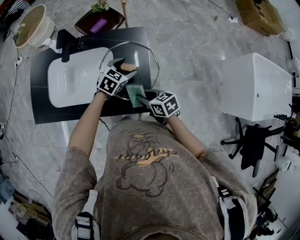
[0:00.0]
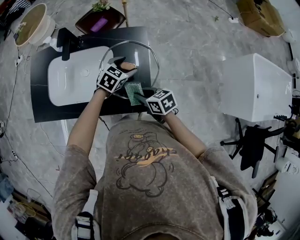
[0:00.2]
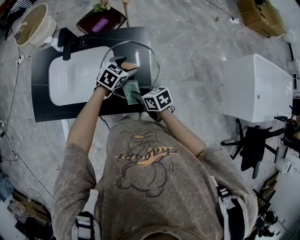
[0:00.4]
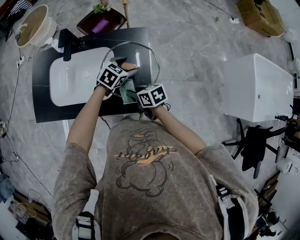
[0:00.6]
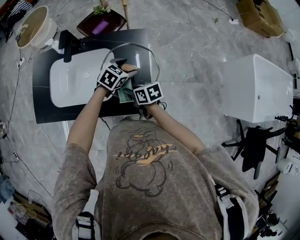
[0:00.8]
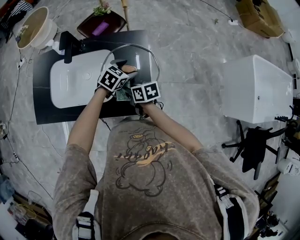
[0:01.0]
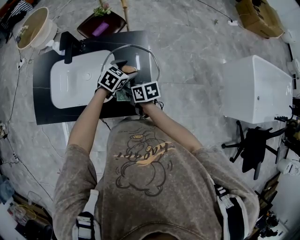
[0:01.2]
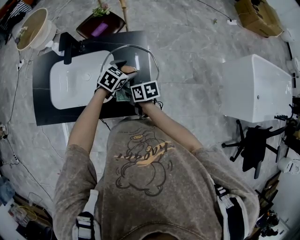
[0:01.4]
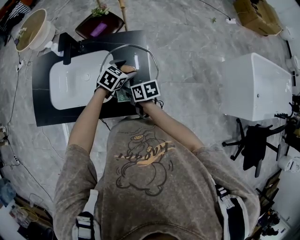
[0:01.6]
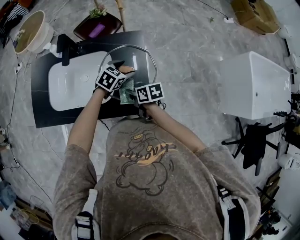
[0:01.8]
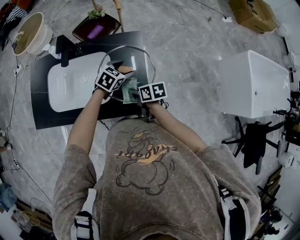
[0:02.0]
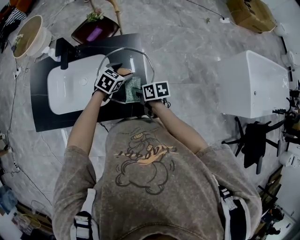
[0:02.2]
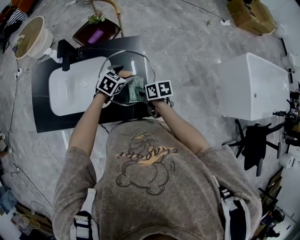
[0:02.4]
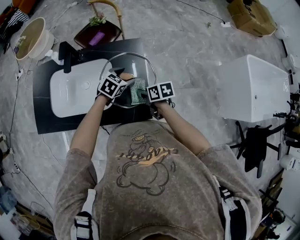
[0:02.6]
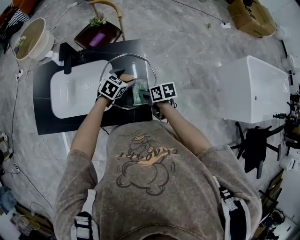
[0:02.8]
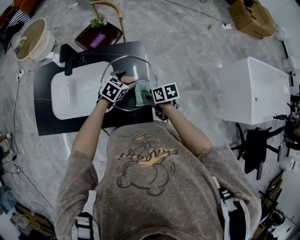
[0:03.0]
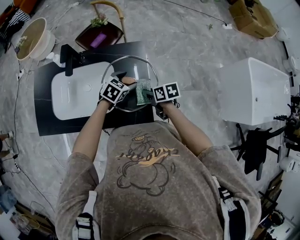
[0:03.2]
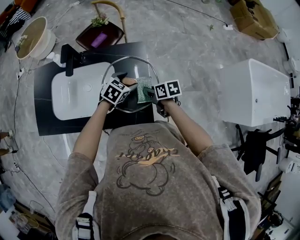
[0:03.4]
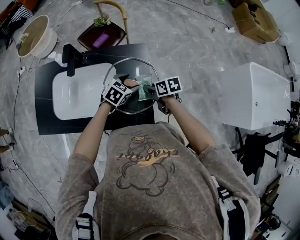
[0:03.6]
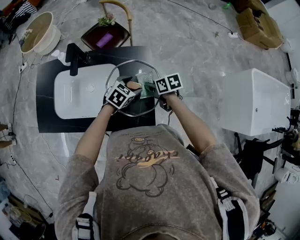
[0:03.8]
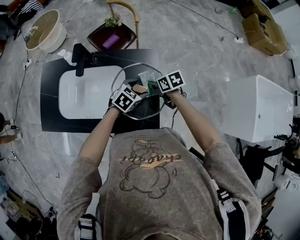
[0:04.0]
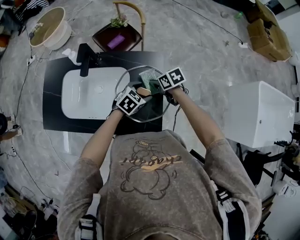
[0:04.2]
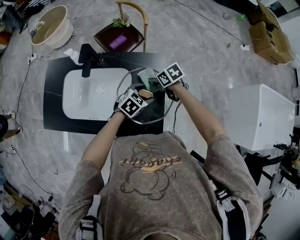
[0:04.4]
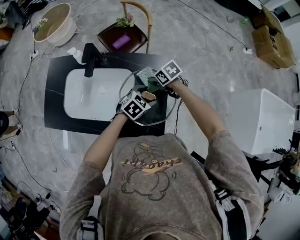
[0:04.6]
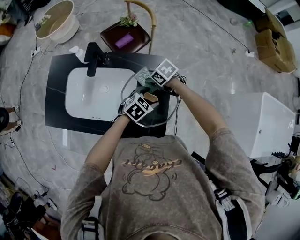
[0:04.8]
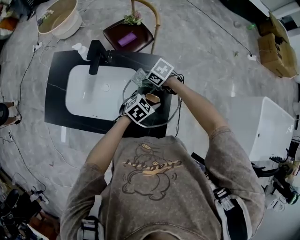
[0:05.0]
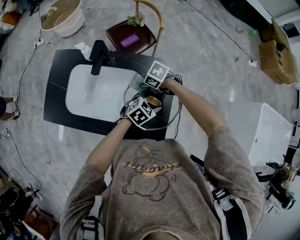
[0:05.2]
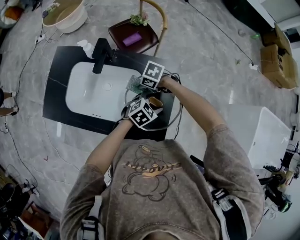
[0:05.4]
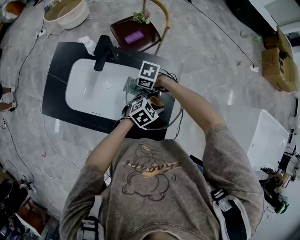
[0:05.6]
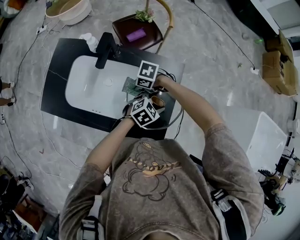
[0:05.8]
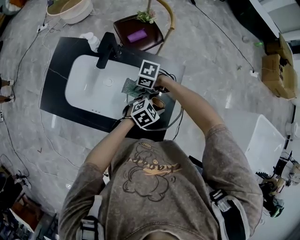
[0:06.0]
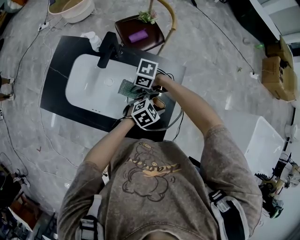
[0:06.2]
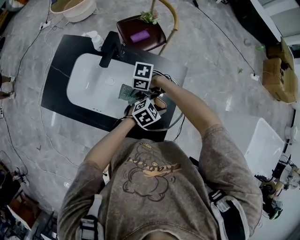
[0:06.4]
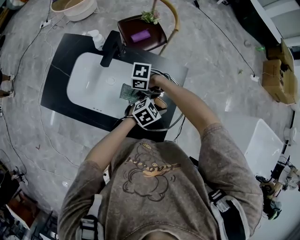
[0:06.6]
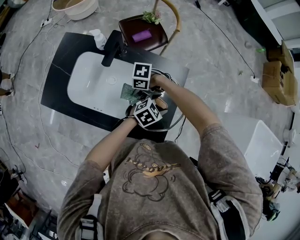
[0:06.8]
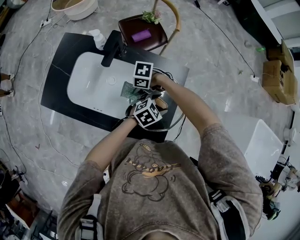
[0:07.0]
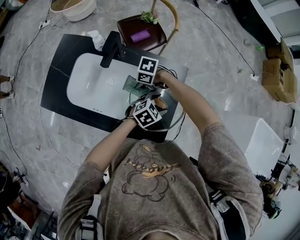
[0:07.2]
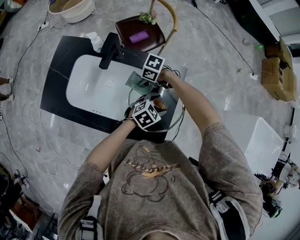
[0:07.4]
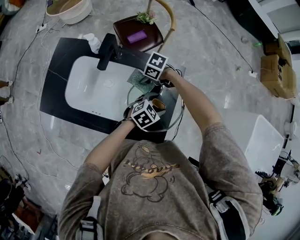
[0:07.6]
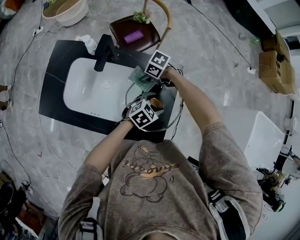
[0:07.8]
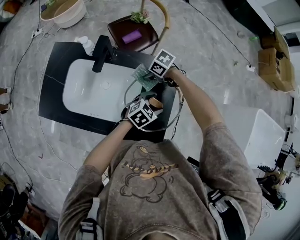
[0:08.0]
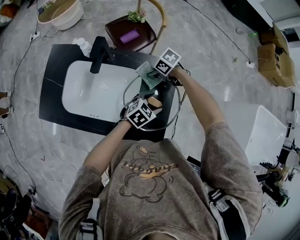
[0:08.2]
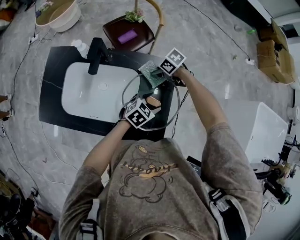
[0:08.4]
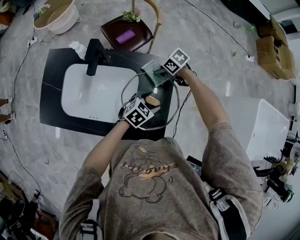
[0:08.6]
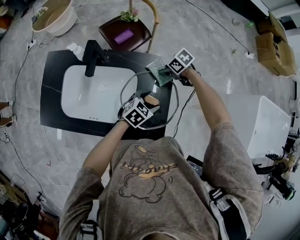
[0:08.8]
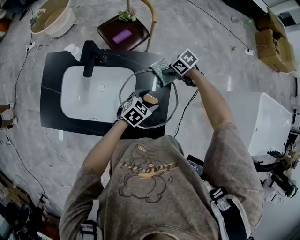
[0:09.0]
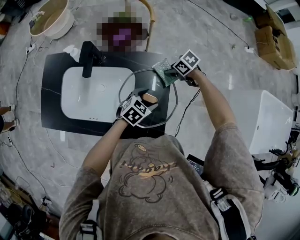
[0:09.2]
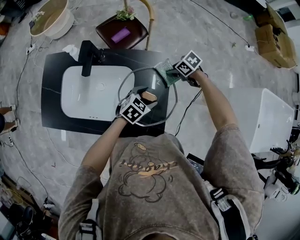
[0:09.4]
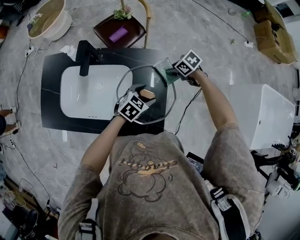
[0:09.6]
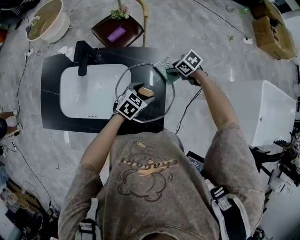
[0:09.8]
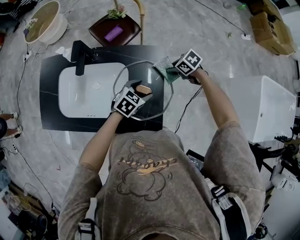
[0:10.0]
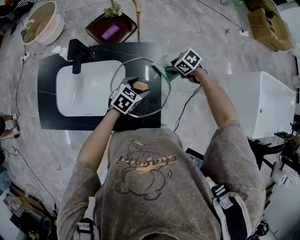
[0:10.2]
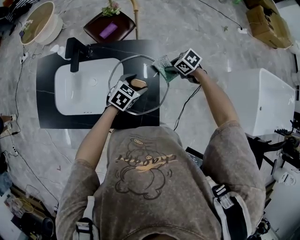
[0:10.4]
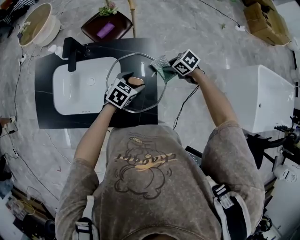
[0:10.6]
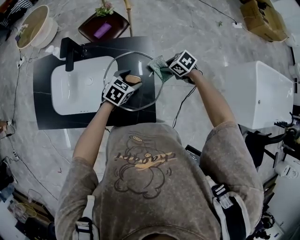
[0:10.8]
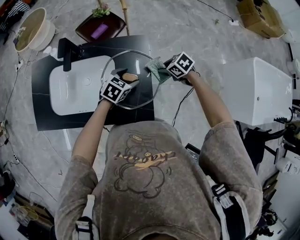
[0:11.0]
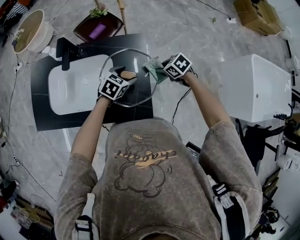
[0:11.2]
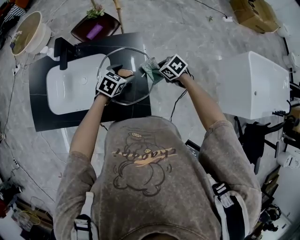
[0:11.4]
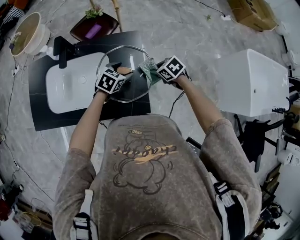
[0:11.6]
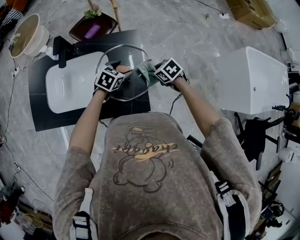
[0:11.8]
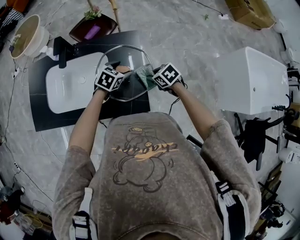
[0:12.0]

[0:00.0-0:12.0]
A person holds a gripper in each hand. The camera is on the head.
0:00.0 to 0:01.6: The right gripper is displaced to the left and forward by about 10 cm.
0:01.6 to 0:03.0: The right gripper shifts some 10 cm to the right.
0:03.0 to 0:04.4: The right gripper moves roughly 15 cm, and turns by about 30 degrees.
0:04.4 to 0:06.0: The right gripper ends up some 15 cm from where it was, and changes its angle by roughly 50 degrees.
0:06.0 to 0:07.6: The right gripper changes place by some 5 cm.
0:07.6 to 0:09.0: The right gripper shifts by roughly 20 cm, and swivels roughly 30 degrees.
0:09.0 to 0:10.4: The right gripper moves roughly 10 cm.
0:10.4 to 0:12.0: The right gripper moves about 10 cm.

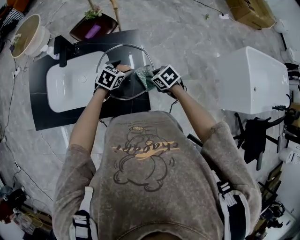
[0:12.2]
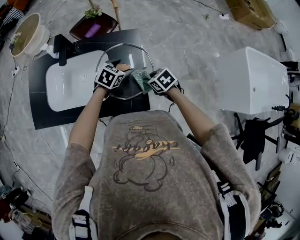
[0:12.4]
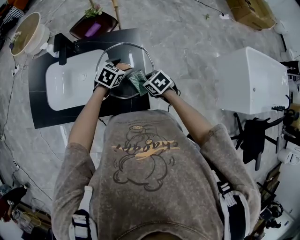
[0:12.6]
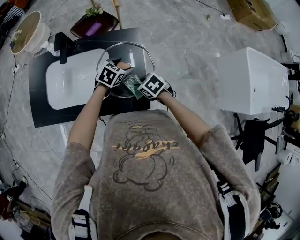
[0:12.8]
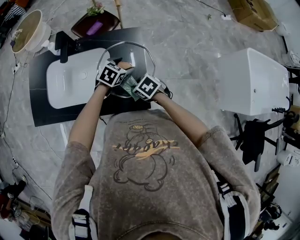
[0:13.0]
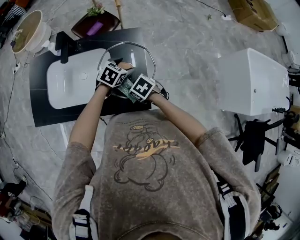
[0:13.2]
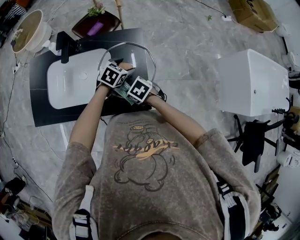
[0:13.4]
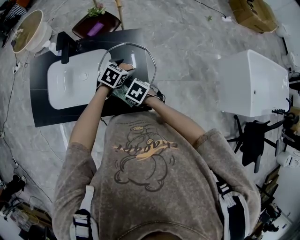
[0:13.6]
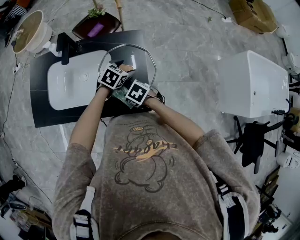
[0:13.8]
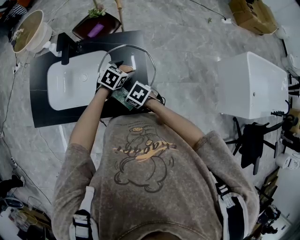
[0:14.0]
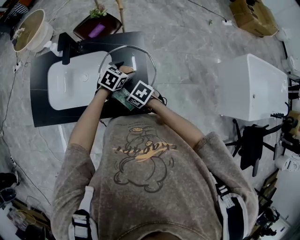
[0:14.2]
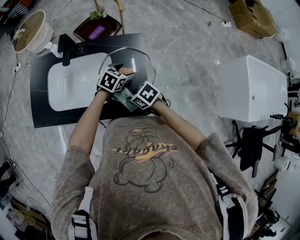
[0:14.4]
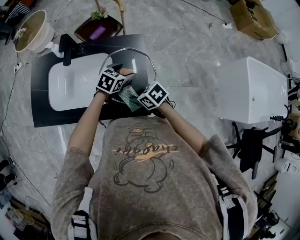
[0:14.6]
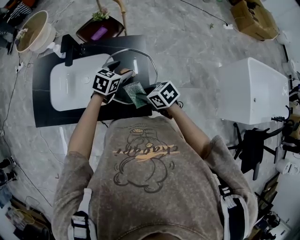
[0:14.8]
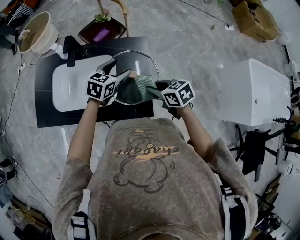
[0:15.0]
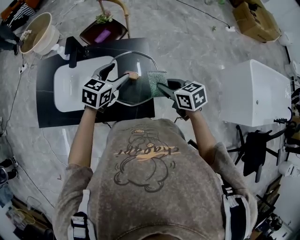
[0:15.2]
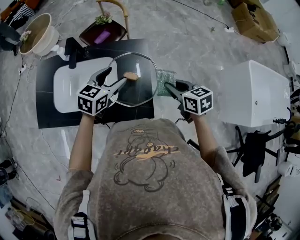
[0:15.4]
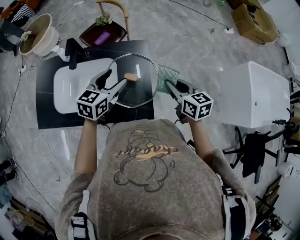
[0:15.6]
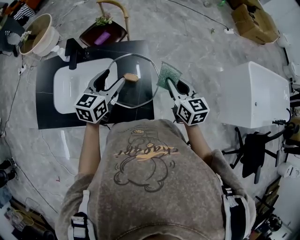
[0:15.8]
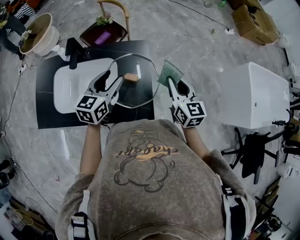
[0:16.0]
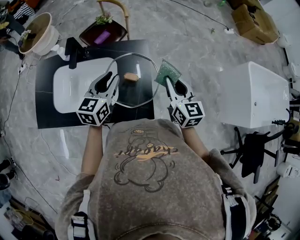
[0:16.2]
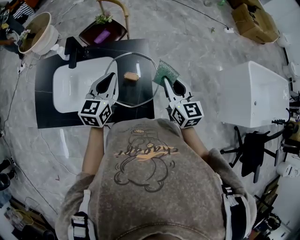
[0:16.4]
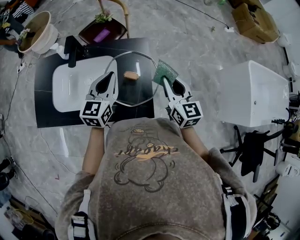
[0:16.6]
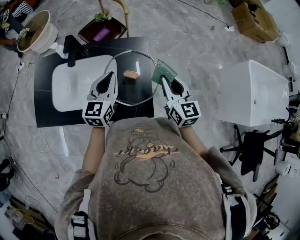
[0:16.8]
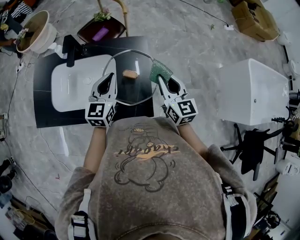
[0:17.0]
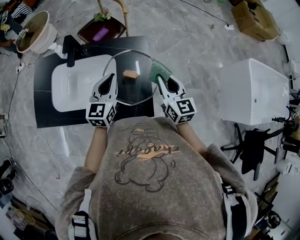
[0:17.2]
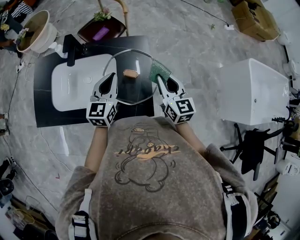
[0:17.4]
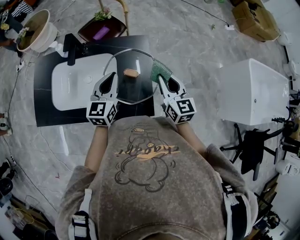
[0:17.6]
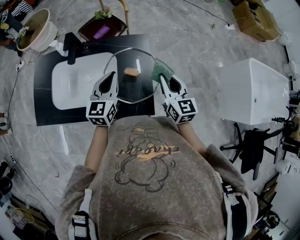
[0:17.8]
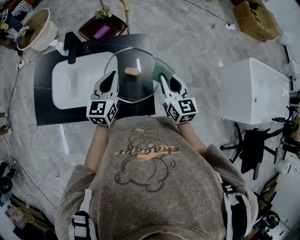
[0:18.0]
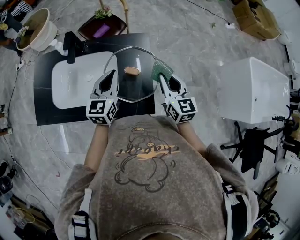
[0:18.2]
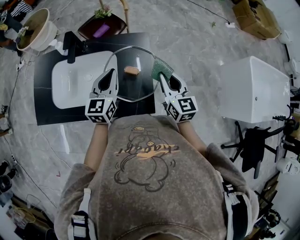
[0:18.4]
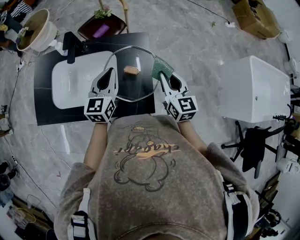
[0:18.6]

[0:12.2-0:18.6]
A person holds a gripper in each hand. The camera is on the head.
0:12.2 to 0:13.8: The right gripper ends up about 15 cm from where it was.
0:13.8 to 0:15.4: The left gripper travels upward by roughly 15 cm, and swivels some 20 degrees, while the right gripper shifts by about 25 cm, and changes its angle by approximately 40 degrees.
0:15.4 to 0:17.0: The right gripper rotates some 30 degrees. Meanwhile the left gripper turns by some 30 degrees, and closes its fingers.
0:17.0 to 0:18.6: There are only small adjustments of the grippers.

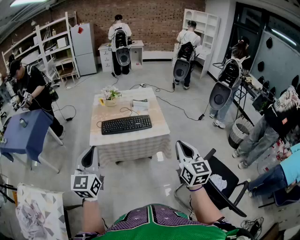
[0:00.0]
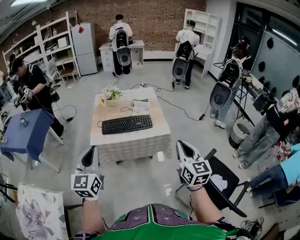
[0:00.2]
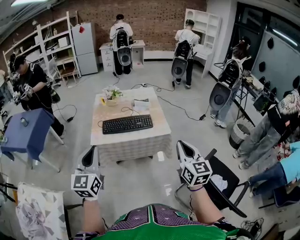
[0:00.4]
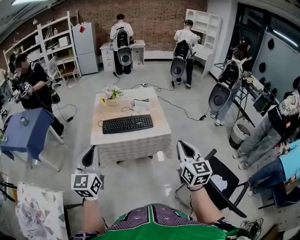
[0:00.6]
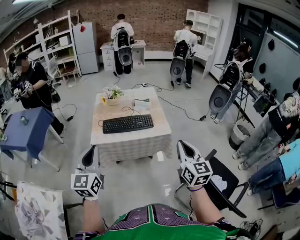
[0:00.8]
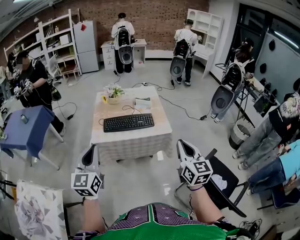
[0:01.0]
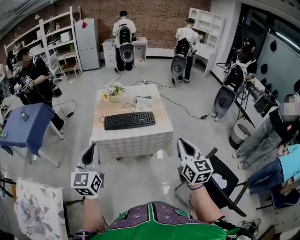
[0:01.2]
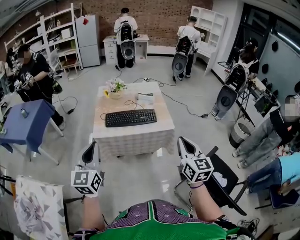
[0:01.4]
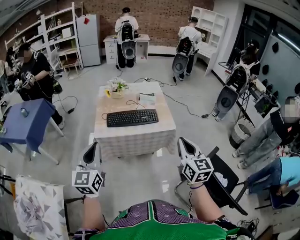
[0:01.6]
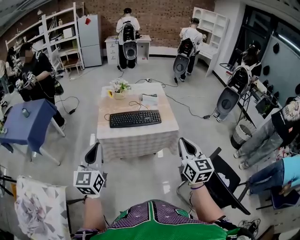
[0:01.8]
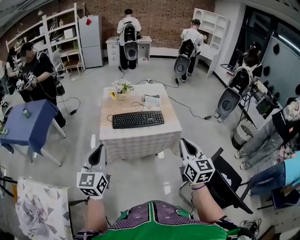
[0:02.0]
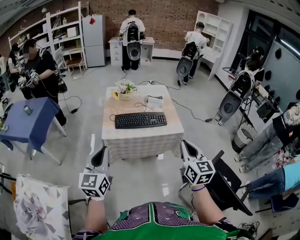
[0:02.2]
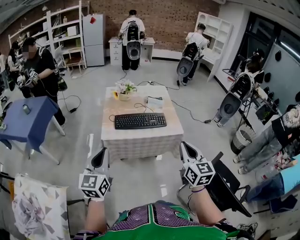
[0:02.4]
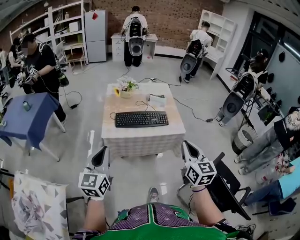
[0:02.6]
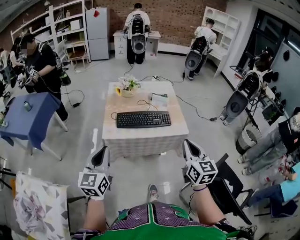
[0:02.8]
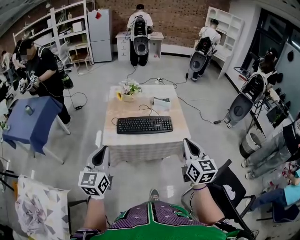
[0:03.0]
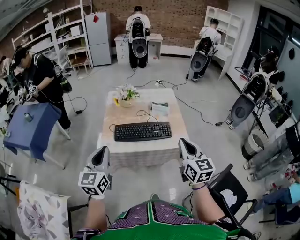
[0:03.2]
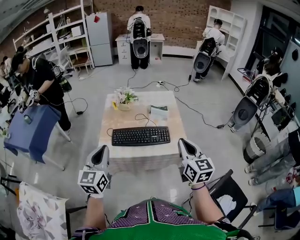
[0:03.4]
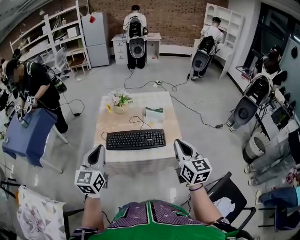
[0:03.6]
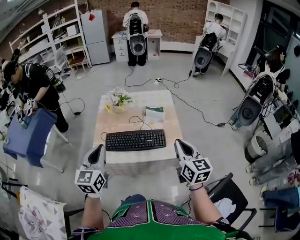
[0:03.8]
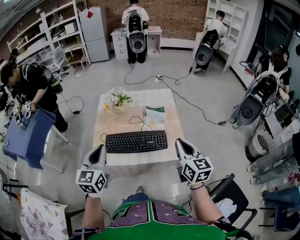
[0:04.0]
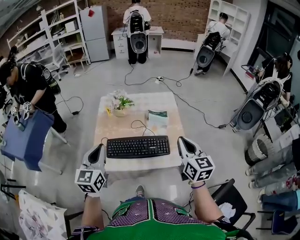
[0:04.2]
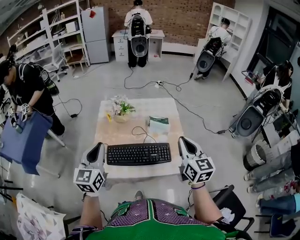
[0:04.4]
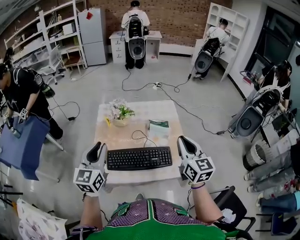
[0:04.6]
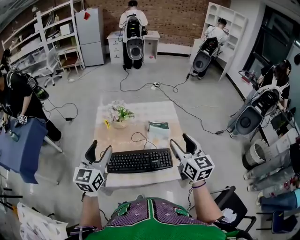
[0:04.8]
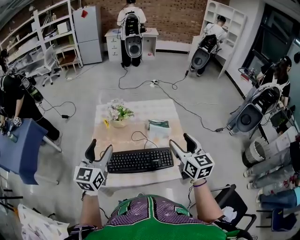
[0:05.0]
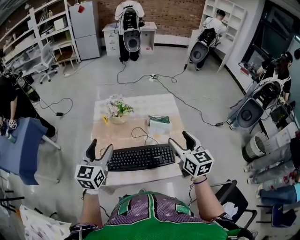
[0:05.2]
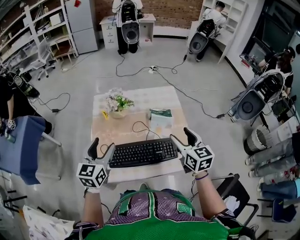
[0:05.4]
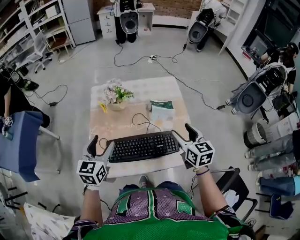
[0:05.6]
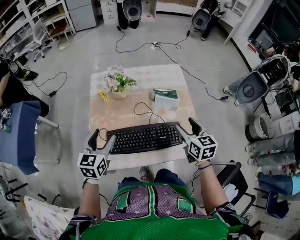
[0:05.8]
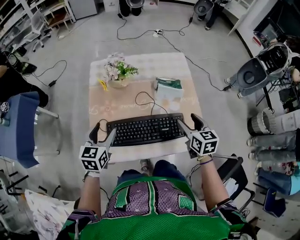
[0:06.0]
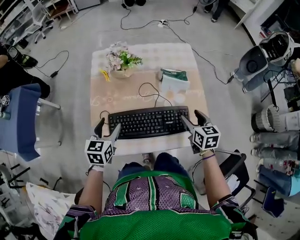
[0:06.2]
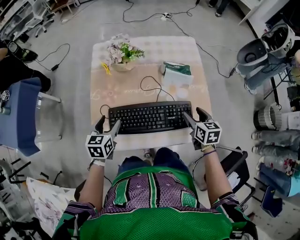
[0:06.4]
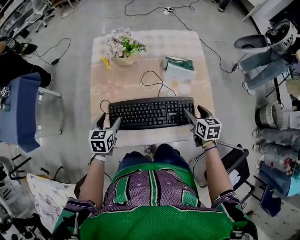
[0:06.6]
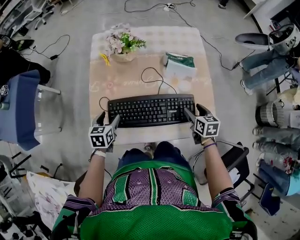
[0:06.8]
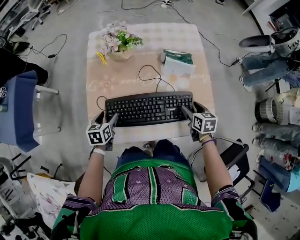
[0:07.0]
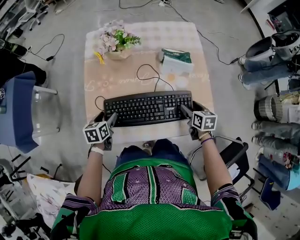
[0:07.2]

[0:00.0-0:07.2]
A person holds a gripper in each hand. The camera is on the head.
0:00.0 to 0:01.4: There are only small adjustments of the grippers.
0:01.4 to 0:02.8: The right gripper is displaced forward and to the left by about 10 cm. Meanwhile the left gripper heads forward, downward and to the left, covering some 10 cm.
0:02.8 to 0:04.4: Both grippers move forward, some 35 cm.
0:04.4 to 0:05.8: The two grippers go about 20 cm downward and forward. The right gripper changes its angle by some 20 degrees, and opens. Meanwhile the left gripper rotates about 20 degrees, and opens.
0:05.8 to 0:07.2: The grippers both shift downward by about 25 cm. The right gripper swivels approximately 30 degrees, while the left gripper turns by roughly 30 degrees.
